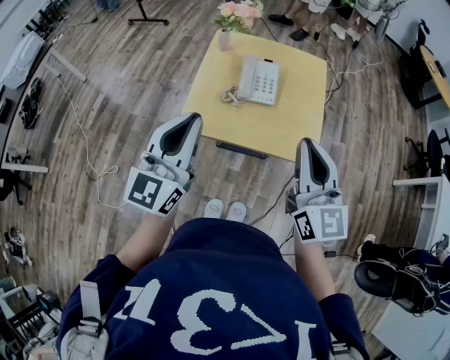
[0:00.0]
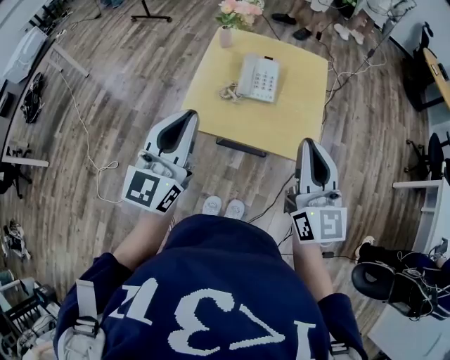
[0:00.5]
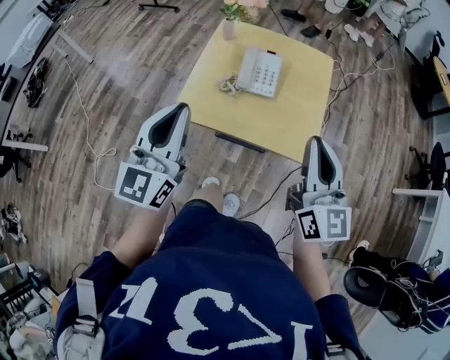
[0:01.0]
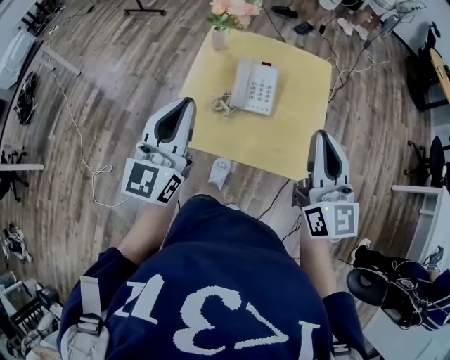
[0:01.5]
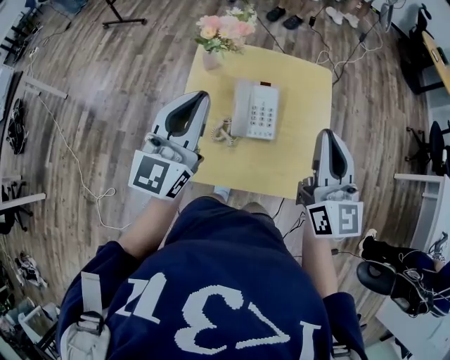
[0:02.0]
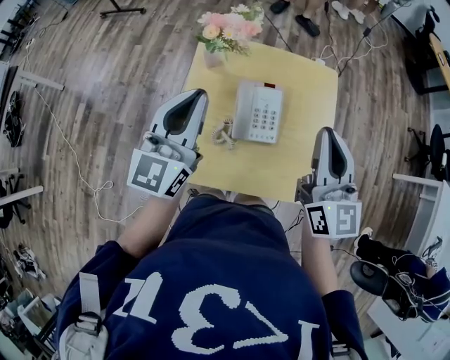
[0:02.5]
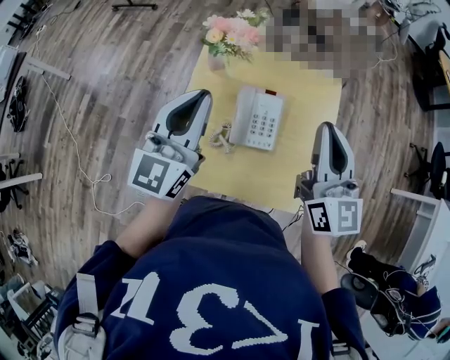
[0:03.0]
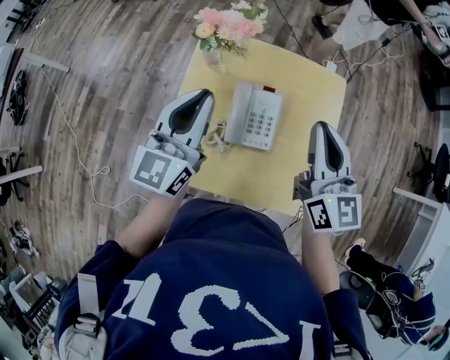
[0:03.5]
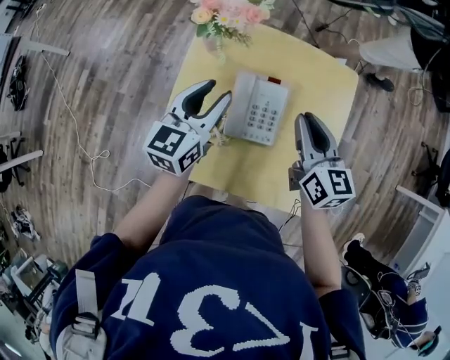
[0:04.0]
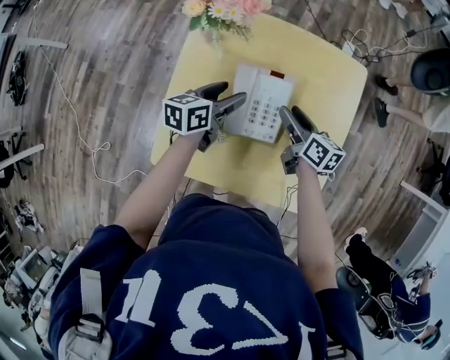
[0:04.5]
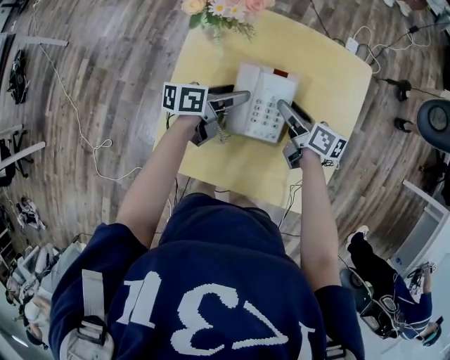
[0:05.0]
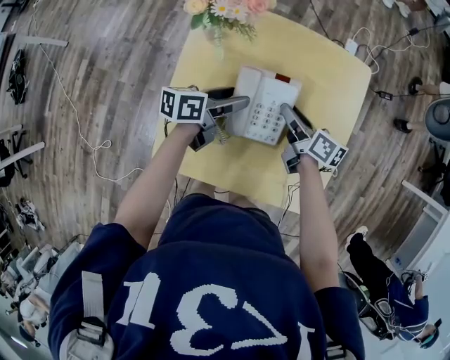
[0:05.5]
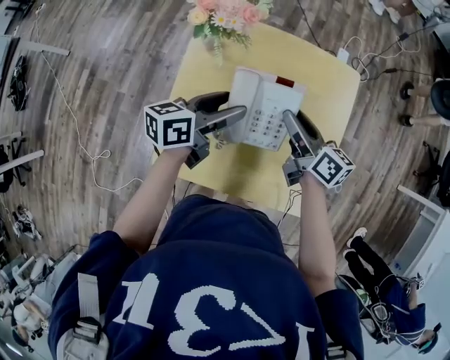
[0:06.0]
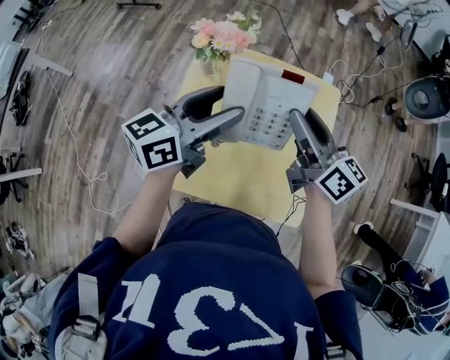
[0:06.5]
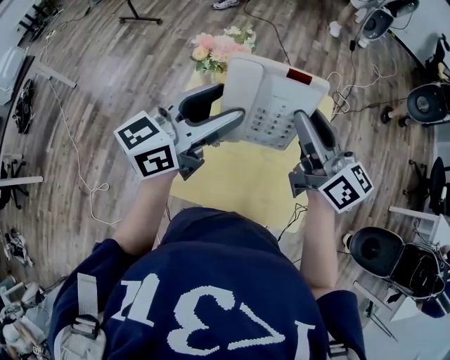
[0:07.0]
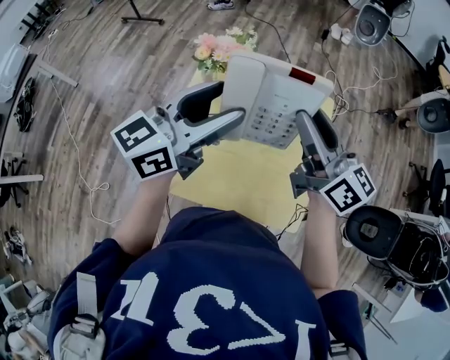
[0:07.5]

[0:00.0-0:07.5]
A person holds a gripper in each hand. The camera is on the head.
0:00.0 to 0:02.0: Both grippers travel together forward, about 25 cm.
0:02.0 to 0:04.0: Both grippers travel together downward and forward, some 20 cm. The left gripper changes its angle by approximately 30 degrees, and opens. The right gripper swivels some 30 degrees.
0:04.0 to 0:05.5: Both grippers move downward, roughly 15 cm. The right gripper changes its angle by about 40 degrees, and opens; the left gripper rotates approximately 50 degrees, and opens.
0:05.5 to 0:07.5: Both grippers move upward, some 35 cm. The left gripper turns by about 50 degrees. Meanwhile the right gripper points its fingers roughly 30 degrees further upward.

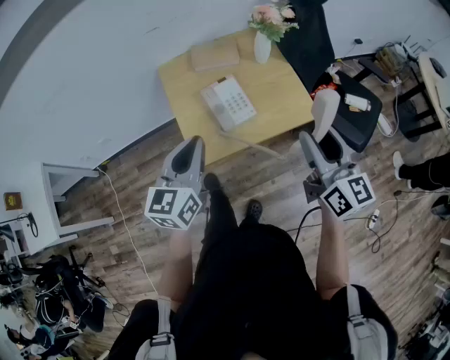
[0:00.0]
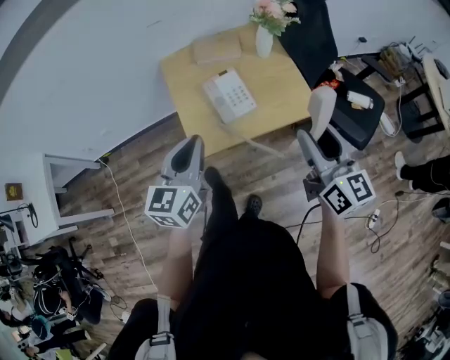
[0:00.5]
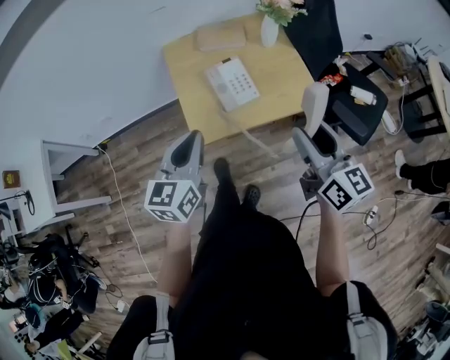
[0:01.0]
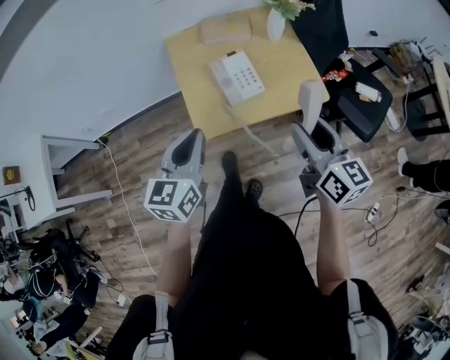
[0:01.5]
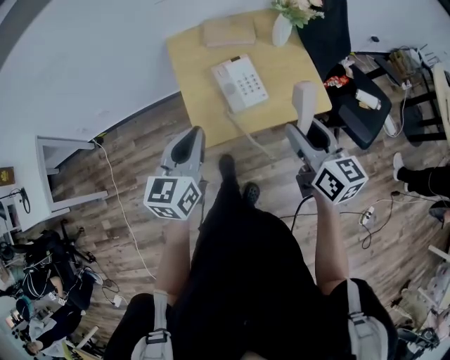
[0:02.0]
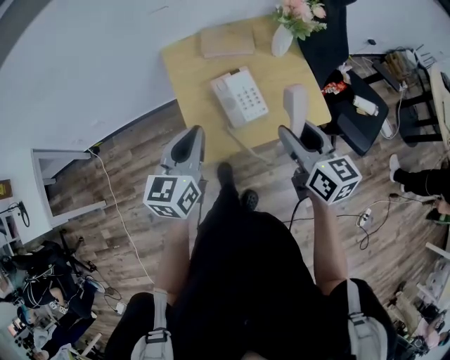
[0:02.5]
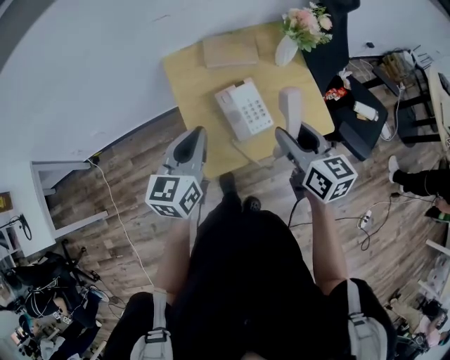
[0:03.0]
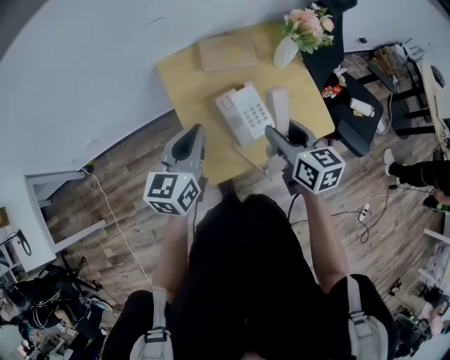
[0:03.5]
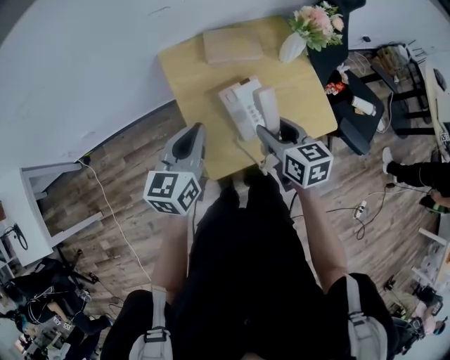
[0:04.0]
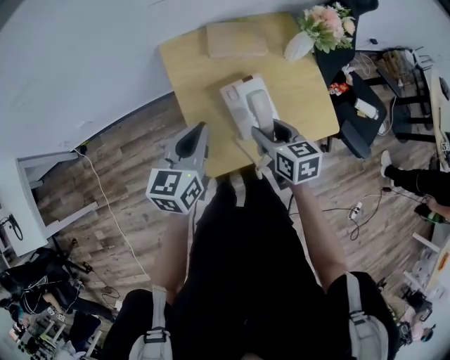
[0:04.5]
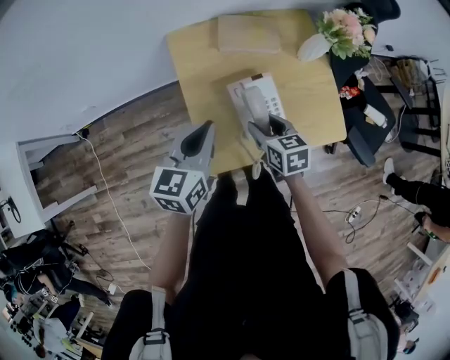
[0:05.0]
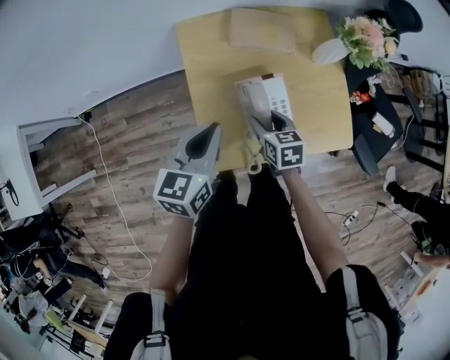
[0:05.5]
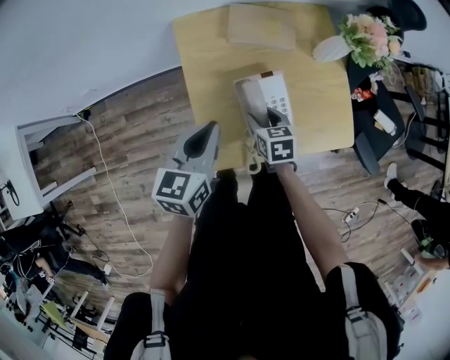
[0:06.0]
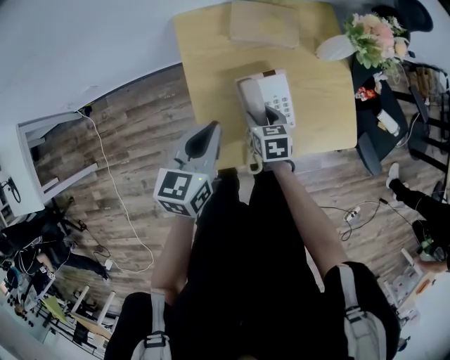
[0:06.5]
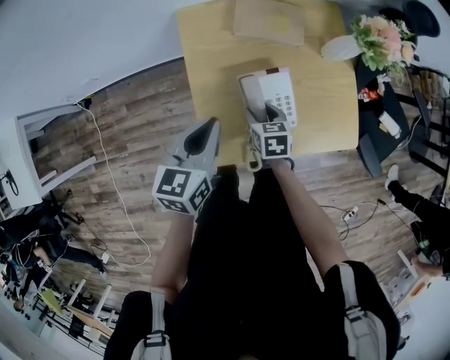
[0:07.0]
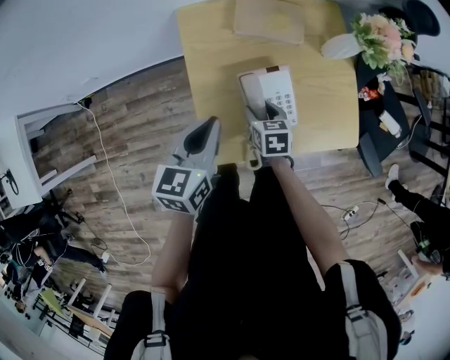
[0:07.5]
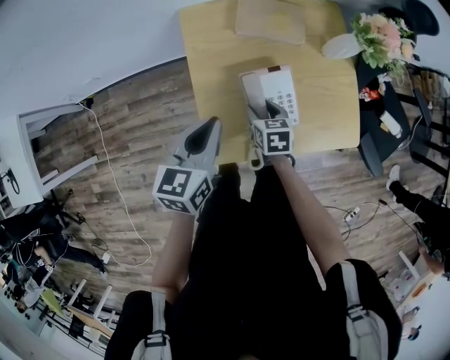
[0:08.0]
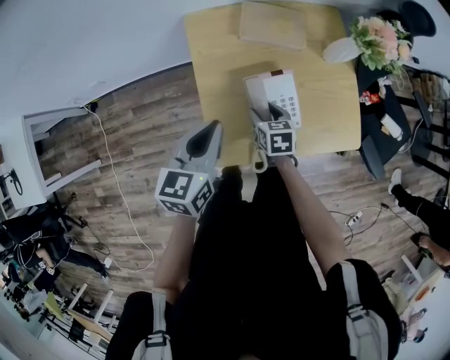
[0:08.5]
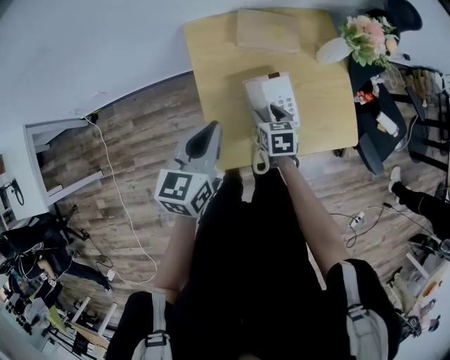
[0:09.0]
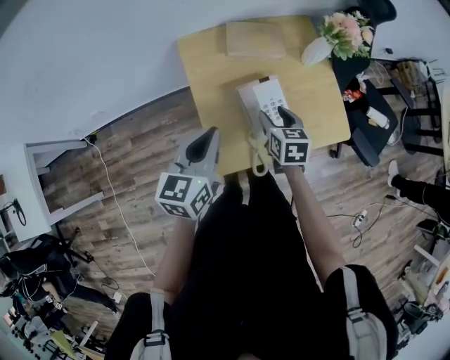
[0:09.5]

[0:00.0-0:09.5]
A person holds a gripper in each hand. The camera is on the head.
0:00.0 to 0:02.0: The left gripper ends up some 5 cm from where it was. Meanwhile the right gripper goes some 10 cm downward and to the left.
0:02.0 to 0:04.0: The right gripper is displaced forward, to the left and downward by some 20 cm. The left gripper goes some 15 cm forward.
0:04.0 to 0:05.5: The left gripper goes some 5 cm downward; the right gripper shifts some 15 cm downward and forward.
0:05.5 to 0:07.5: The right gripper is displaced downward by roughly 5 cm.
0:07.5 to 0:09.5: The left gripper moves upward, roughly 5 cm. The right gripper travels upward by roughly 10 cm.

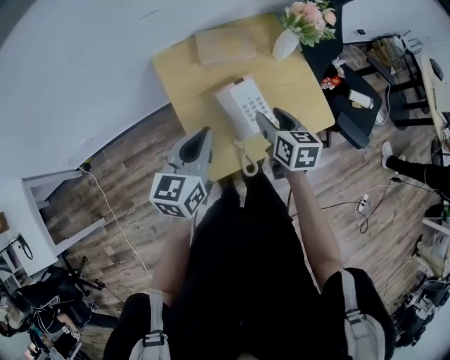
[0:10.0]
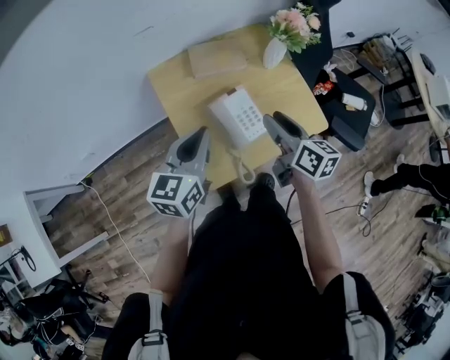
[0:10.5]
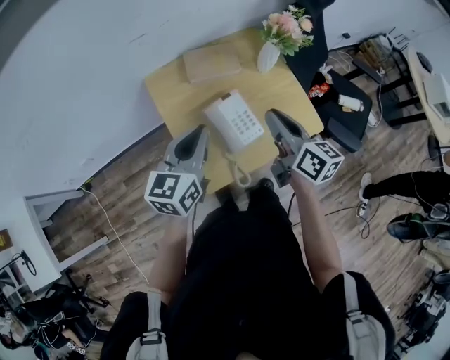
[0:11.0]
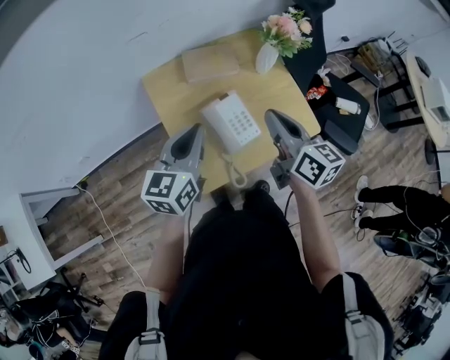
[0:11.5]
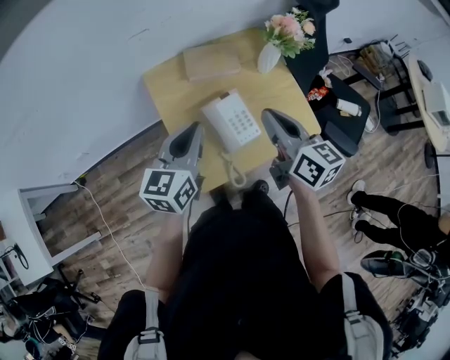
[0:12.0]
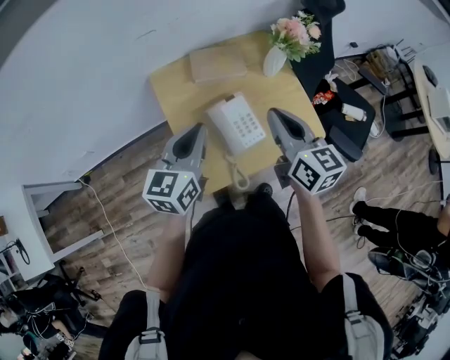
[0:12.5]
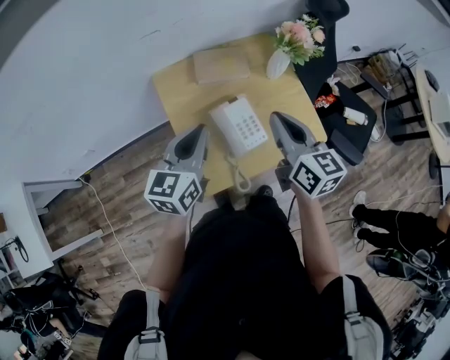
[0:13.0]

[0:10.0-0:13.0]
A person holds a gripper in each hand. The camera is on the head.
0:10.0 to 0:11.5: The right gripper moves upward, roughly 15 cm, turns by about 30 degrees, and closes up; the left gripper changes place by roughly 5 cm.
0:11.5 to 0:13.0: The grippers stay close to where they were, moving slightly.

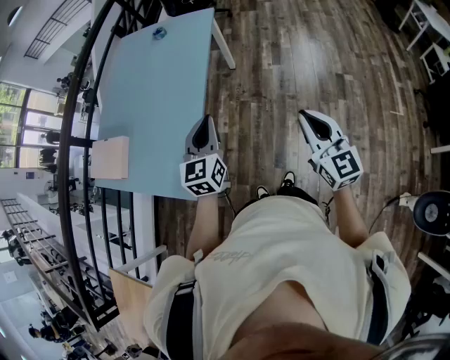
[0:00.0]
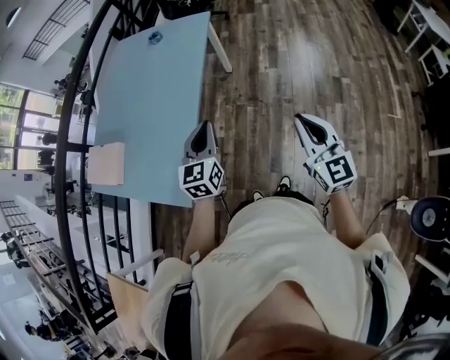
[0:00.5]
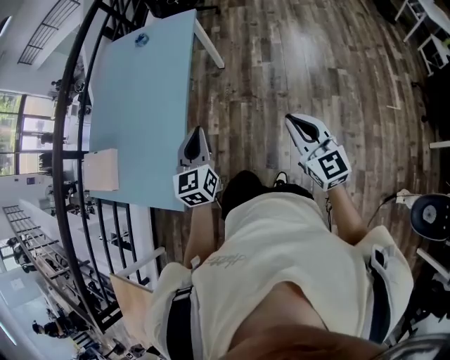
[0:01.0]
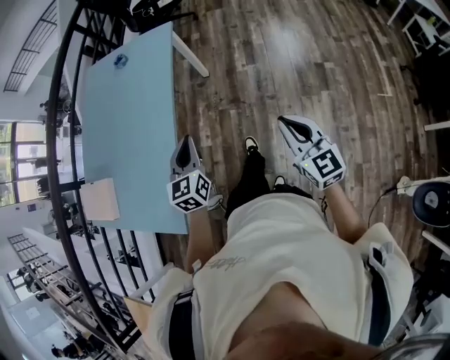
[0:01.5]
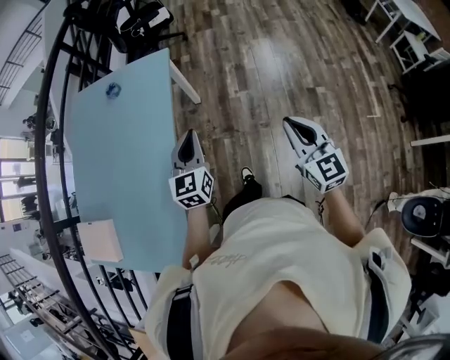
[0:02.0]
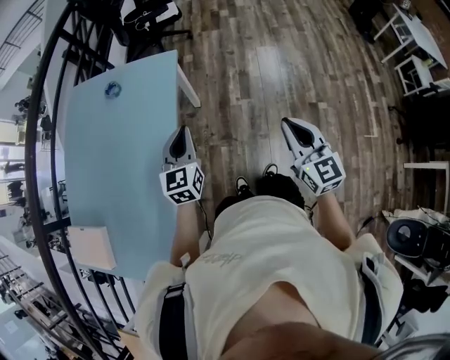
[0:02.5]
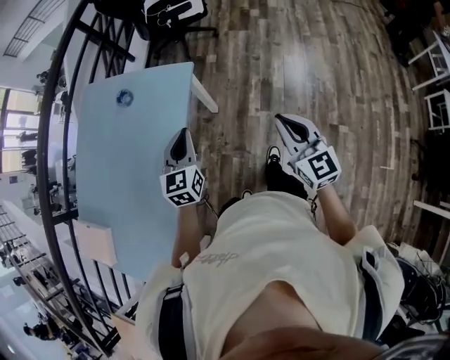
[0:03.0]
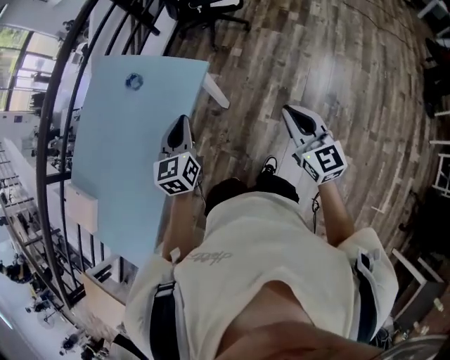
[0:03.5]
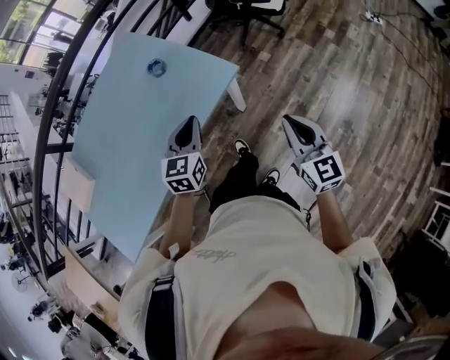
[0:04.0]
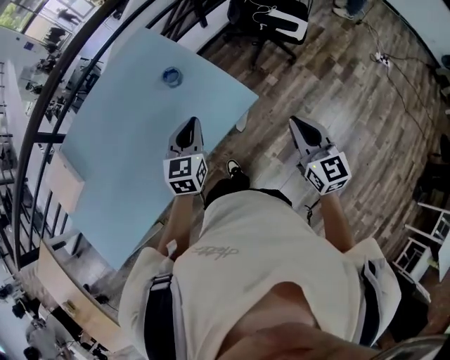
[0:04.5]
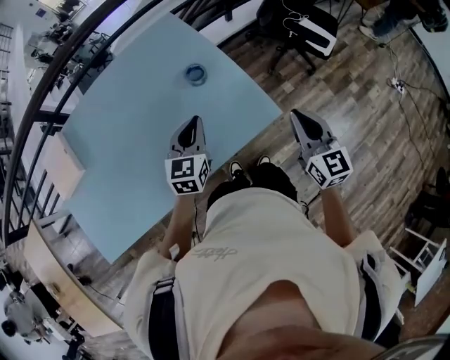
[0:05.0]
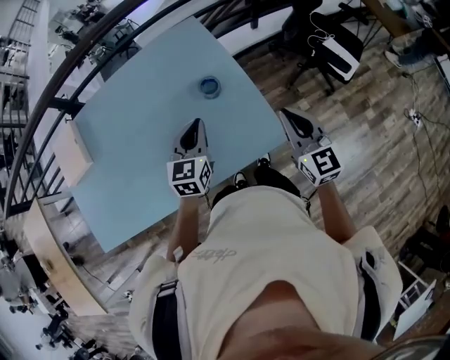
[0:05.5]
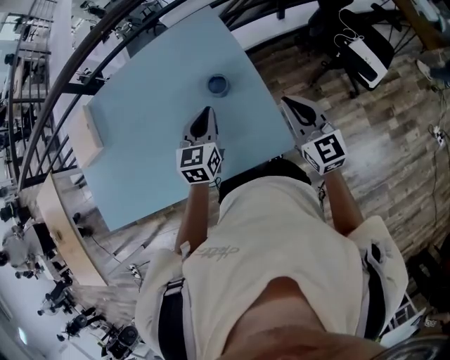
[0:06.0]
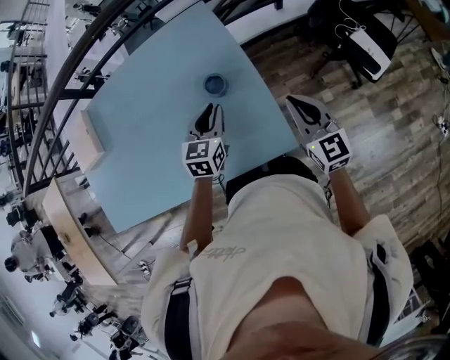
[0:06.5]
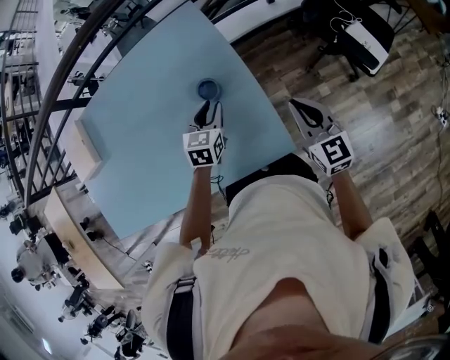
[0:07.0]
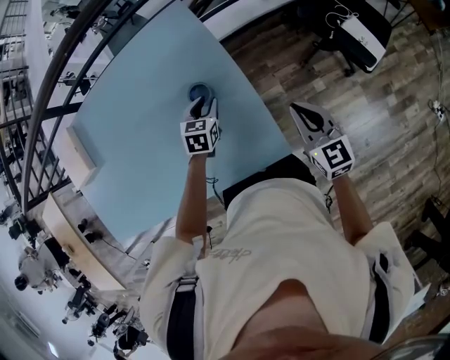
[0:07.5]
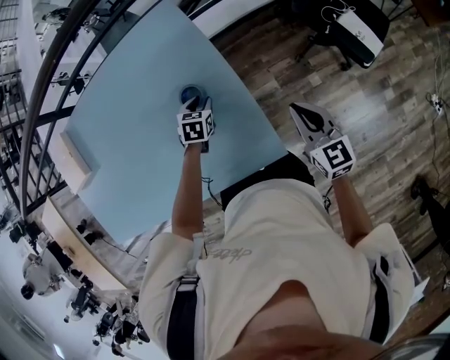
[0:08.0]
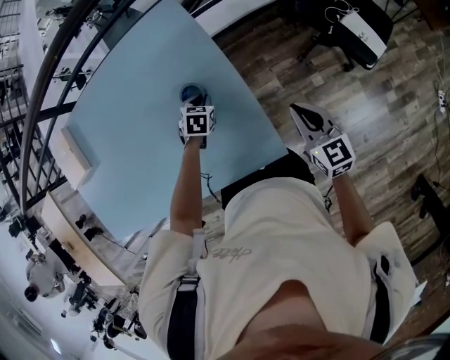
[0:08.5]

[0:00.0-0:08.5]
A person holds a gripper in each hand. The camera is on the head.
0:00.0 to 0:02.0: The right gripper is displaced forward and to the right by some 25 cm. Meanwhile the left gripper shifts some 25 cm forward.
0:02.0 to 0:04.0: The right gripper shifts by about 50 cm, and swivels roughly 40 degrees; the left gripper ends up roughly 35 cm from where it was, and swivels about 30 degrees.
0:04.0 to 0:06.5: The right gripper ends up approximately 40 cm from where it was, and swivels approximately 40 degrees; the left gripper ends up about 30 cm from where it was, and turns by about 30 degrees.
0:06.5 to 0:08.5: The left gripper moves downward and forward, approximately 20 cm, and angles its fingers downward, by roughly 30 degrees, while the right gripper moves downward and to the right, approximately 10 cm.
